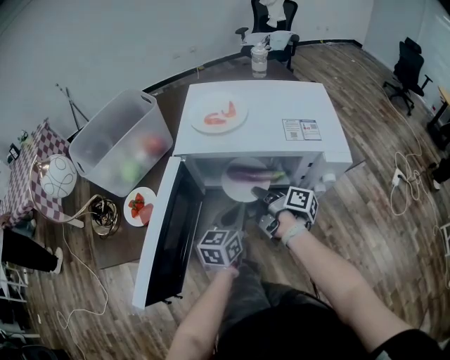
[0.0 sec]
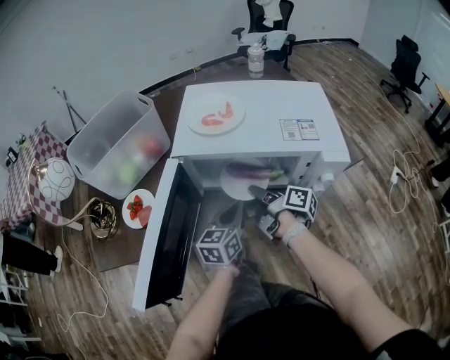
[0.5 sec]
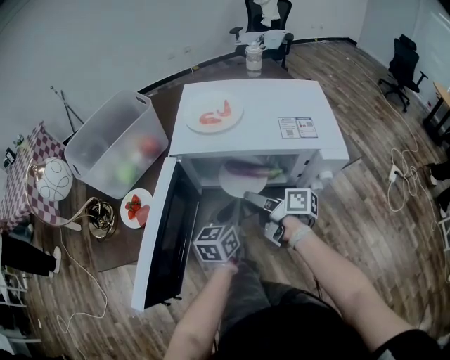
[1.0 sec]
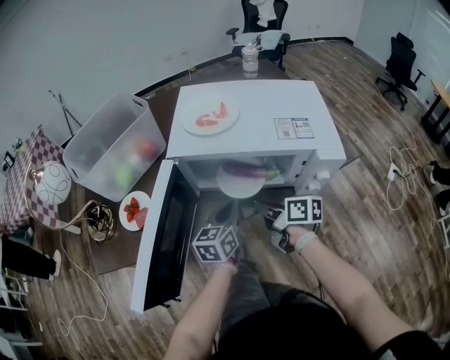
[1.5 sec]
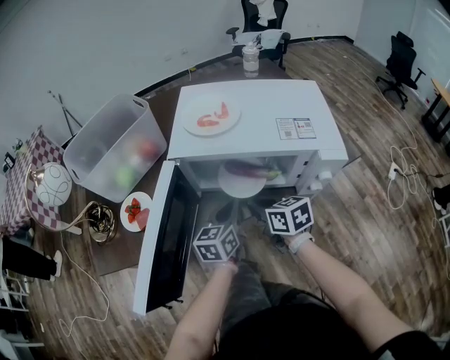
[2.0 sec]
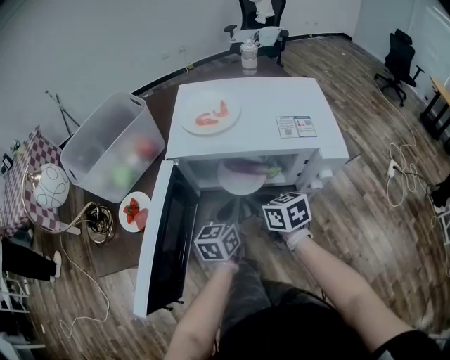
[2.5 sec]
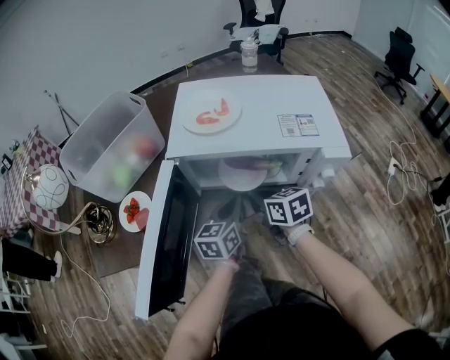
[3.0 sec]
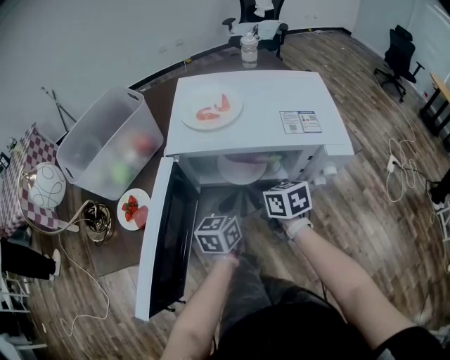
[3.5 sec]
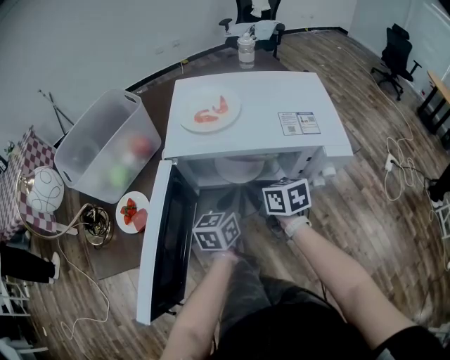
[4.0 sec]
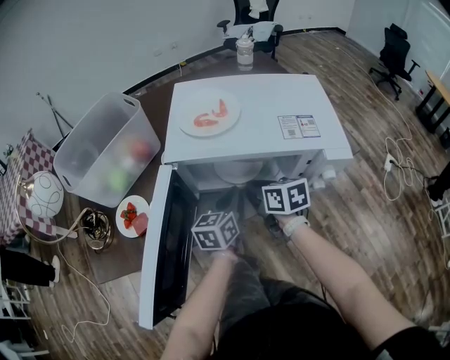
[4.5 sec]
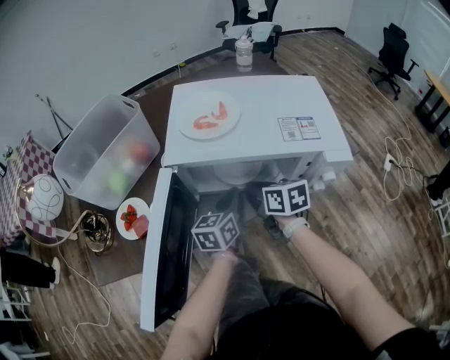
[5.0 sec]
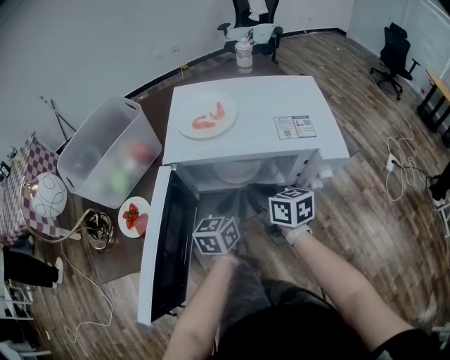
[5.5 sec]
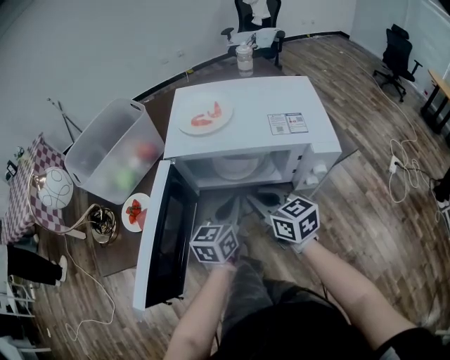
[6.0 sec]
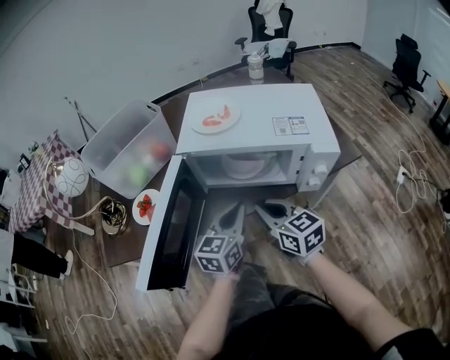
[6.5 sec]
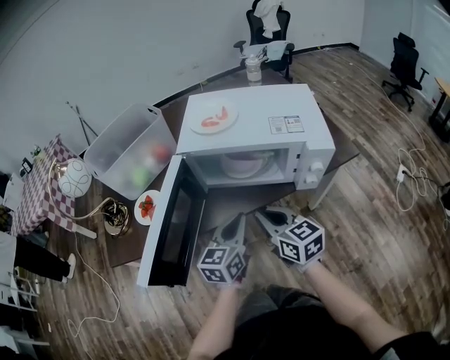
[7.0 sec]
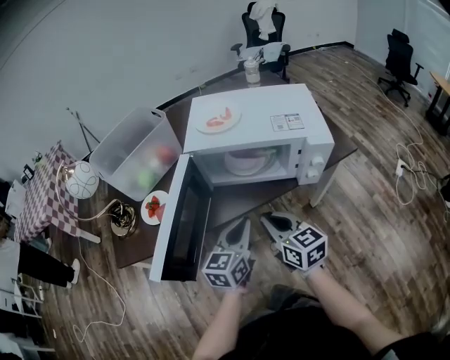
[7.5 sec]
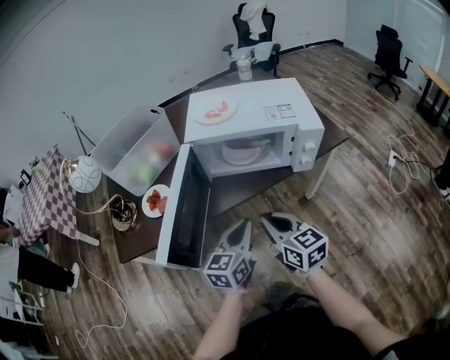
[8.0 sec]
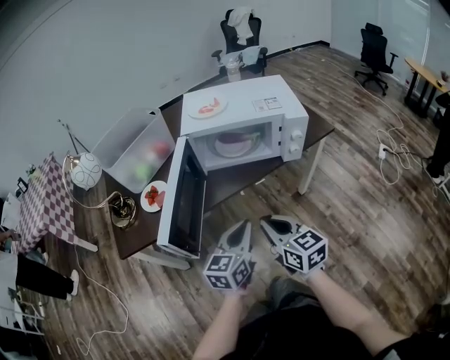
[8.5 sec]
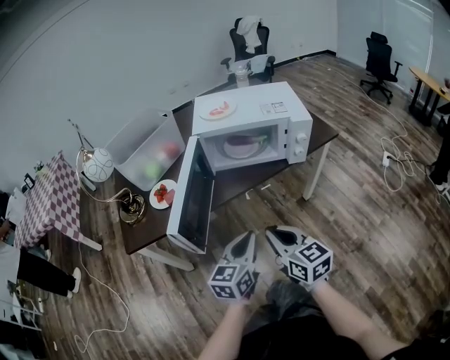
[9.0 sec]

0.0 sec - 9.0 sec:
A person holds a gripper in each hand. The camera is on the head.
0.0 sec - 2.0 sec: The right gripper twists about 60 degrees counterclockwise, seen from behind, and opens and closes again.
2.0 sec - 4.5 sec: The right gripper heads forward, covering roughly 5 cm.
4.5 sec - 7.0 sec: Both grippers travel together backward and upward, roughly 15 cm. The right gripper swivels some 30 degrees.
7.0 sec - 9.0 sec: Both grippers move backward, roughly 20 cm.

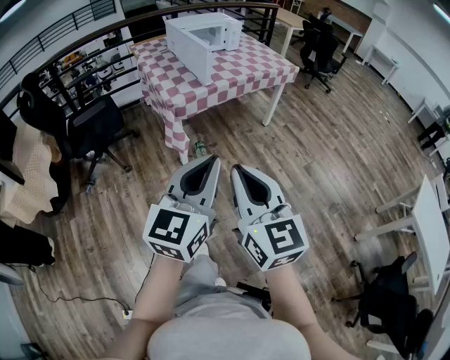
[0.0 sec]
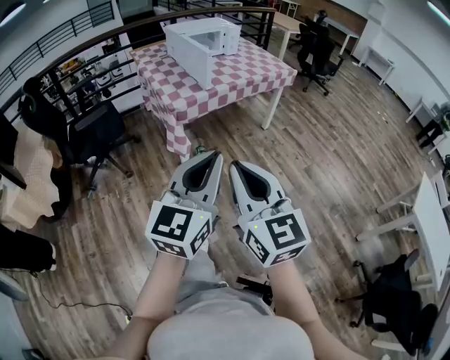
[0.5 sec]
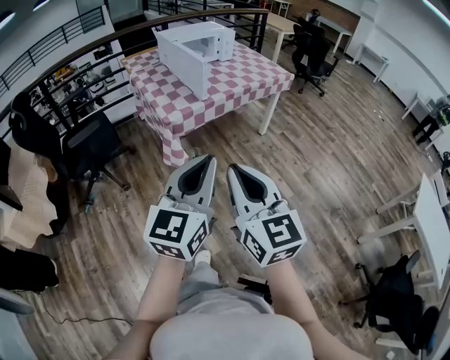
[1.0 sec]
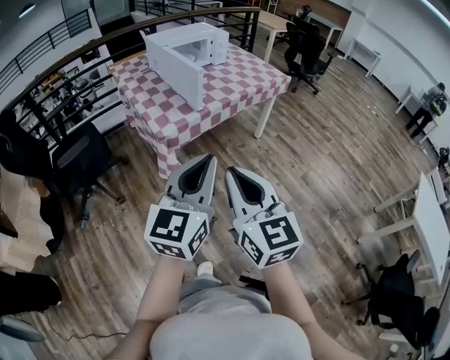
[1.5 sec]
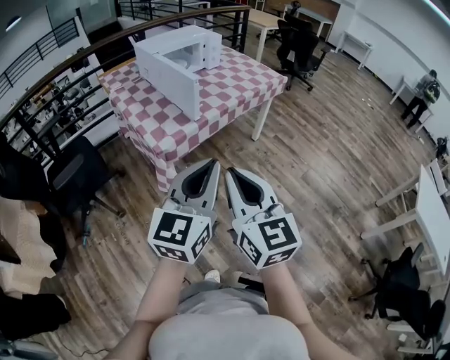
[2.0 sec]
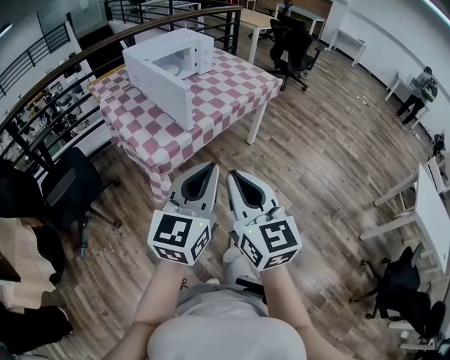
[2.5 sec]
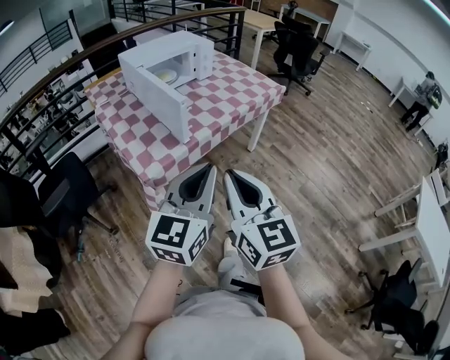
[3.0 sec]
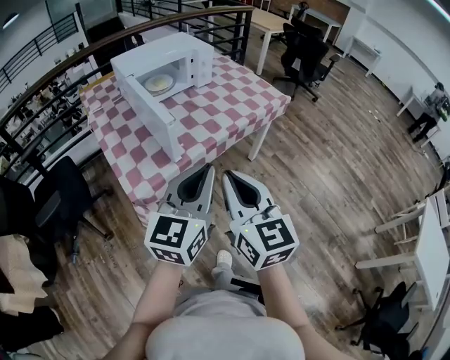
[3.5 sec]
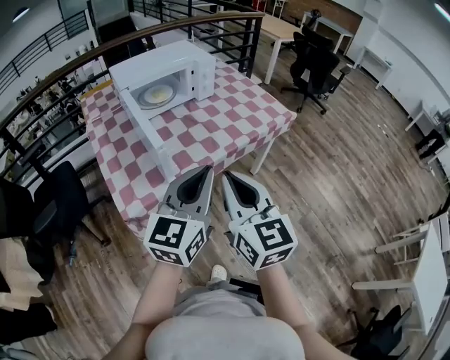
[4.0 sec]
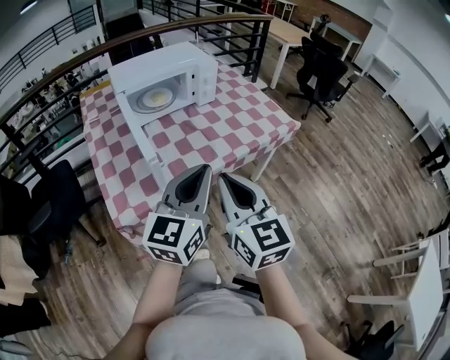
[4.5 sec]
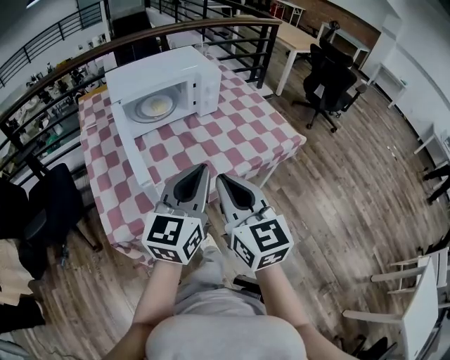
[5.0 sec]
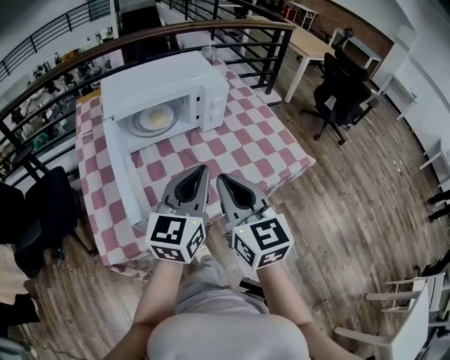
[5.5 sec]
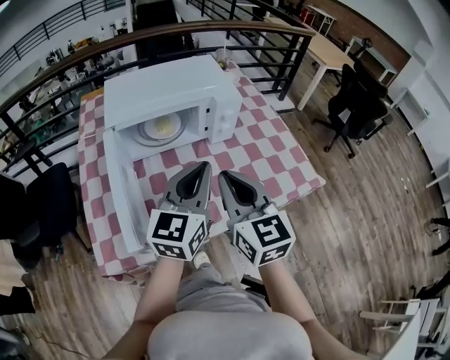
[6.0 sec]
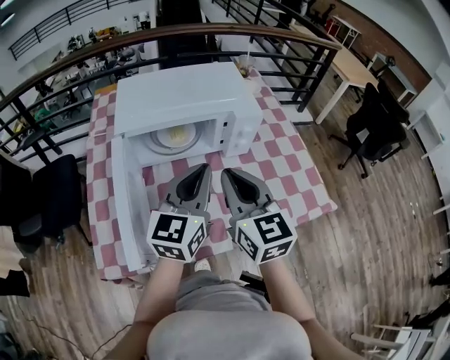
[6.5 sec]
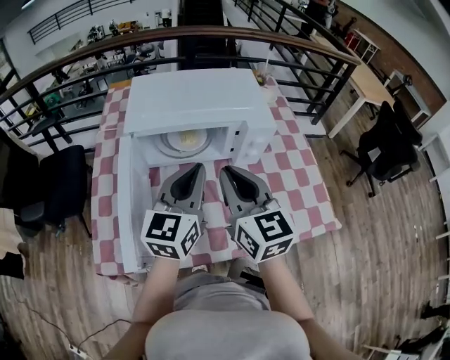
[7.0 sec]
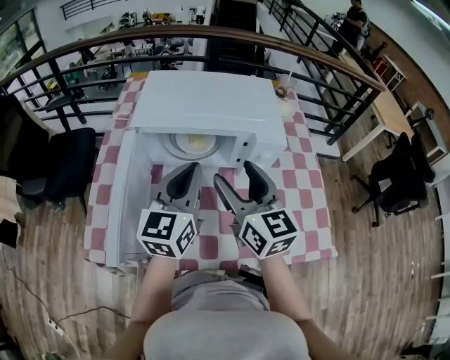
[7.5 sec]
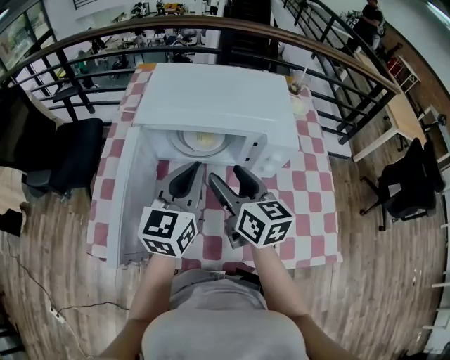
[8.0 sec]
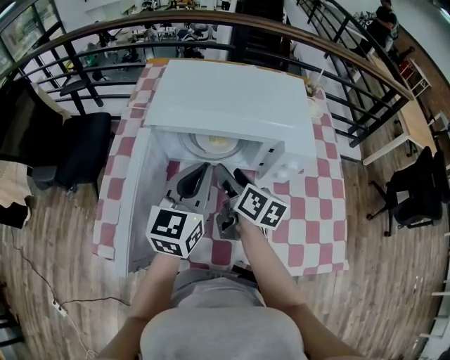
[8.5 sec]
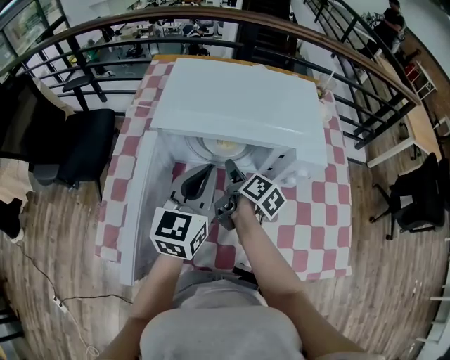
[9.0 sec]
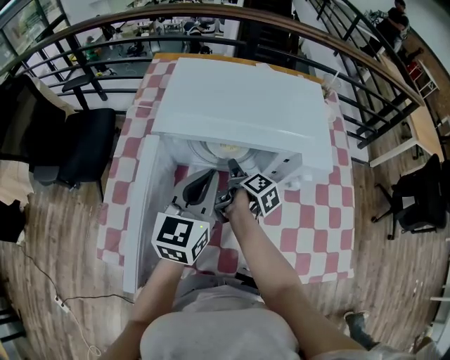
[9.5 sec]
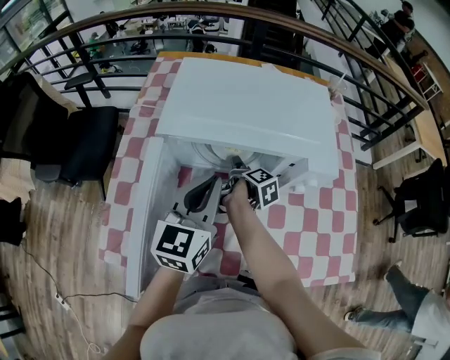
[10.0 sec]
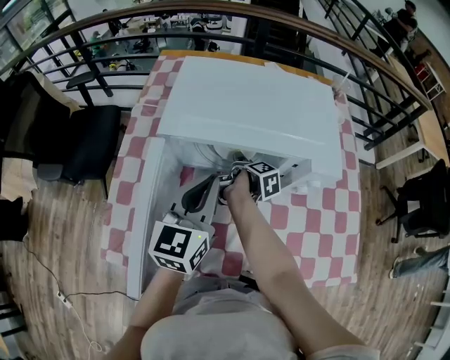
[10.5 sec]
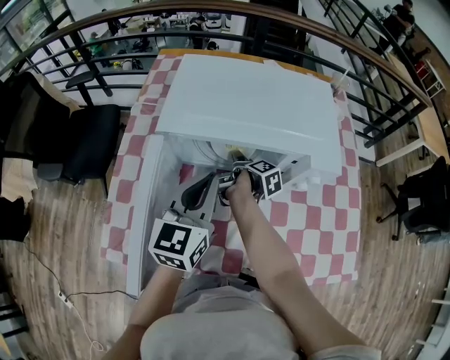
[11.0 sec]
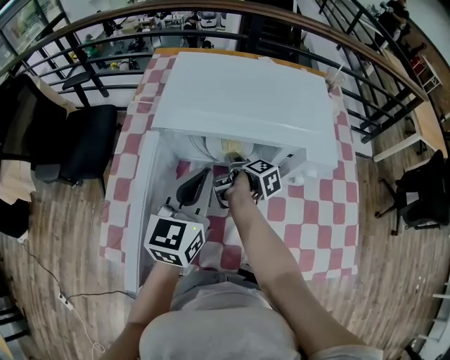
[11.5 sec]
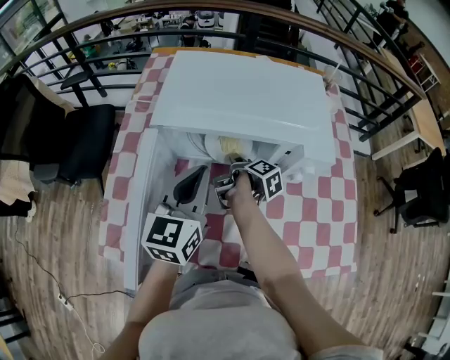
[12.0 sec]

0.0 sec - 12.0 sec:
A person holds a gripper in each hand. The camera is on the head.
0.0 sec - 2.0 sec: Both grippers move forward, roughly 25 cm.
2.0 sec - 4.0 sec: The grippers both shift forward by about 35 cm.
4.0 sec - 6.0 sec: Both grippers move forward, about 35 cm.
6.0 sec - 8.0 sec: The left gripper changes place by roughly 15 cm, and changes its angle by roughly 20 degrees. The right gripper changes place by some 20 cm, rotates roughly 30 degrees, and opens up.
8.0 sec - 10.0 sec: The left gripper moves approximately 5 cm. The right gripper is displaced downward and forward by approximately 25 cm, and rolls clockwise, seen from behind, by some 70 degrees.
10.0 sec - 12.0 sec: The right gripper closes its fingers.

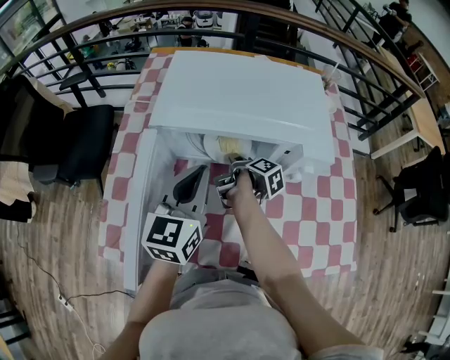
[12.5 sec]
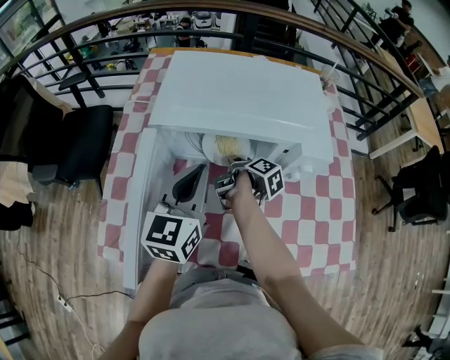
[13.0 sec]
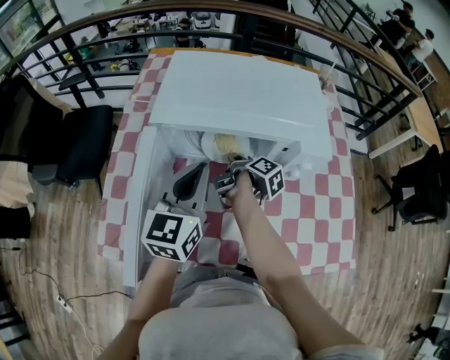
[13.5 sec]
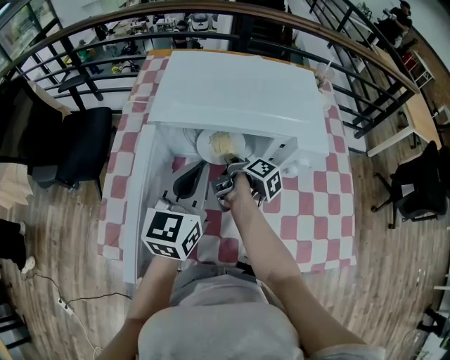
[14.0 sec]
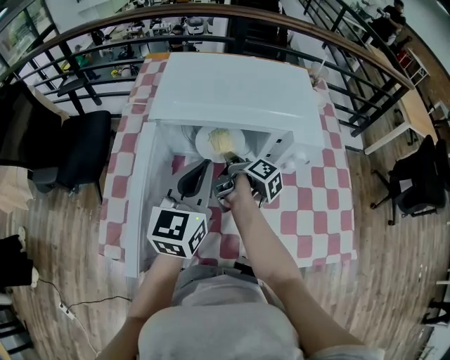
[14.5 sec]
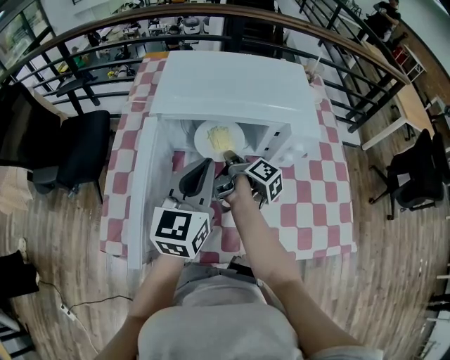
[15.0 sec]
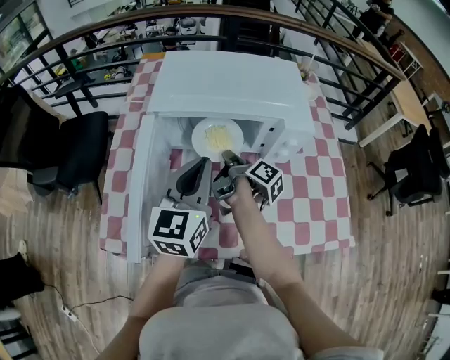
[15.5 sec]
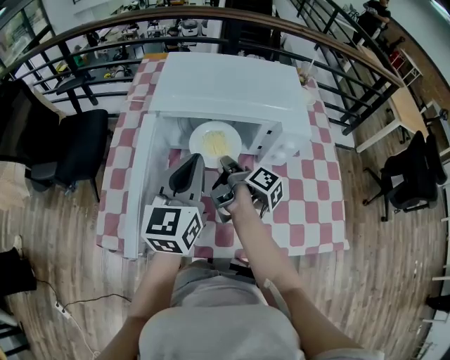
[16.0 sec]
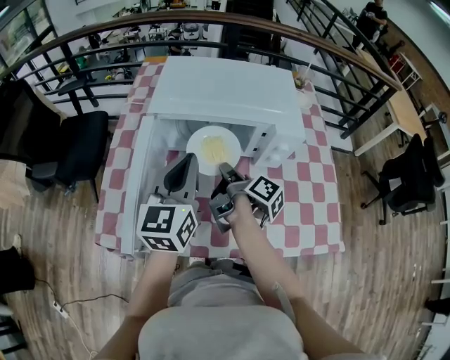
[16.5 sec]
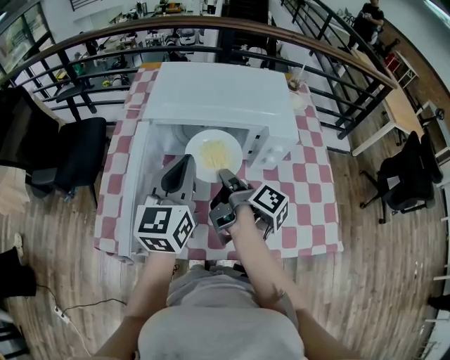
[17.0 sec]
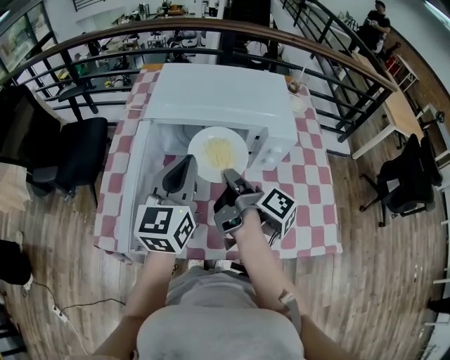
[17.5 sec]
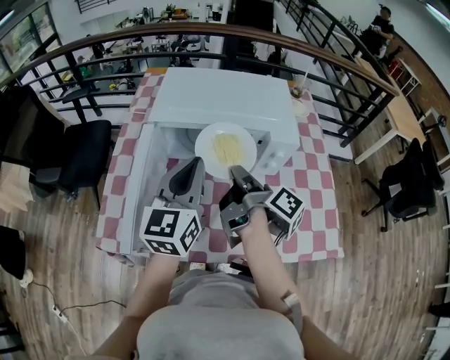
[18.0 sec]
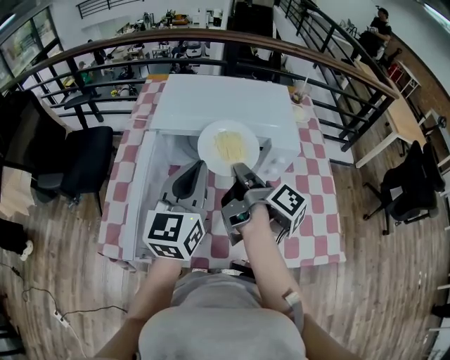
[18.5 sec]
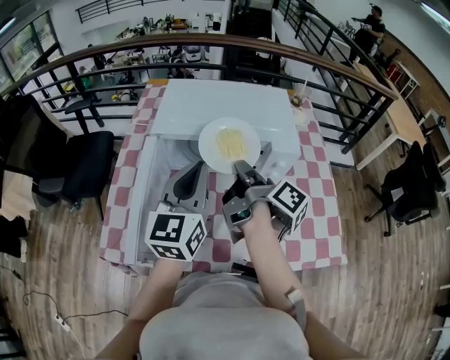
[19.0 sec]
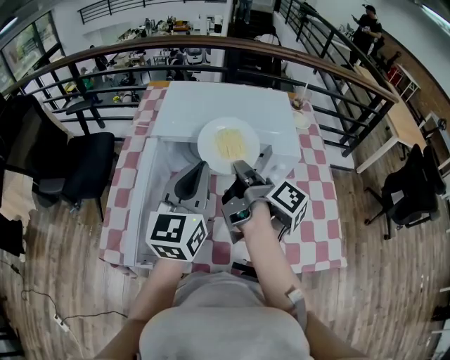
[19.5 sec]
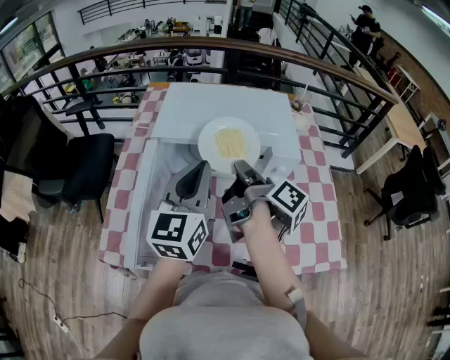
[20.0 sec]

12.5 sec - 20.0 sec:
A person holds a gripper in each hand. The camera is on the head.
12.5 sec - 14.5 sec: The right gripper travels upward by some 5 cm, and closes its fingers.
14.5 sec - 16.5 sec: The right gripper travels backward and upward by roughly 10 cm. Meanwhile the left gripper ends up about 5 cm from where it was.
16.5 sec - 18.0 sec: The right gripper heads upward, covering approximately 10 cm.
18.0 sec - 20.0 sec: The right gripper moves some 5 cm.
